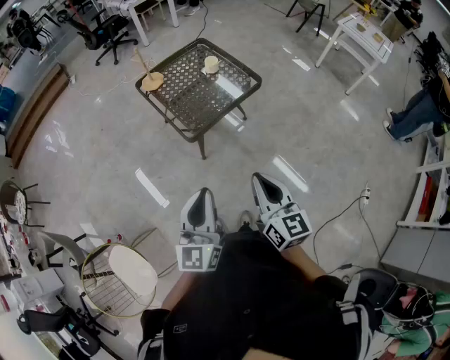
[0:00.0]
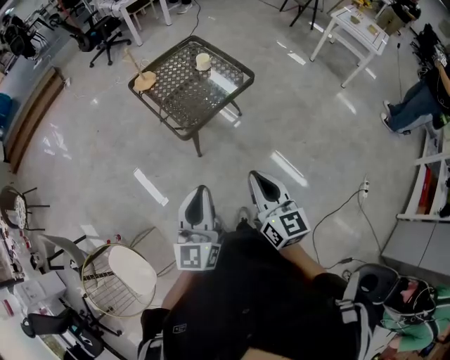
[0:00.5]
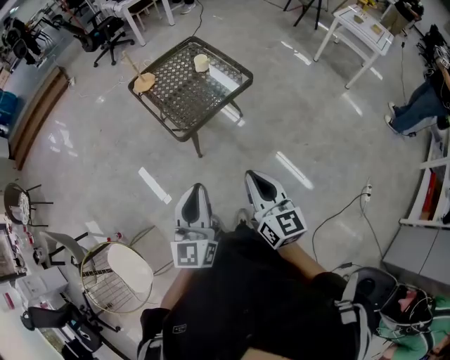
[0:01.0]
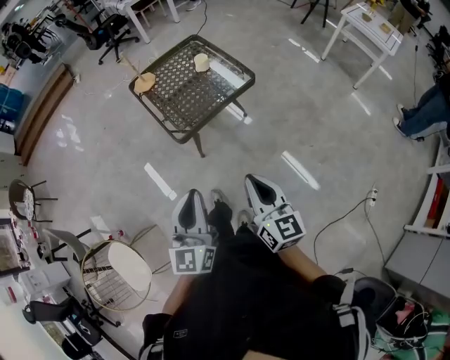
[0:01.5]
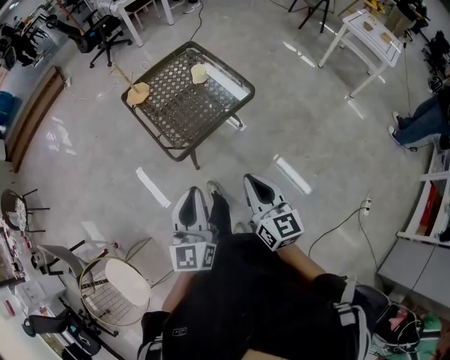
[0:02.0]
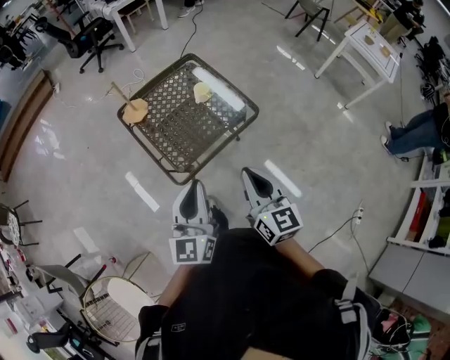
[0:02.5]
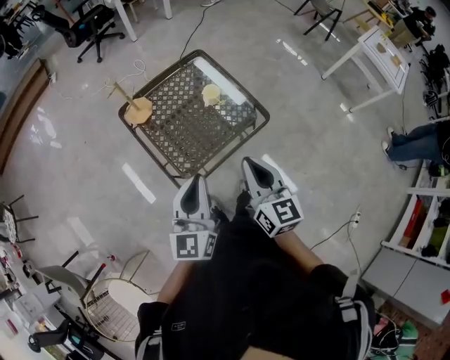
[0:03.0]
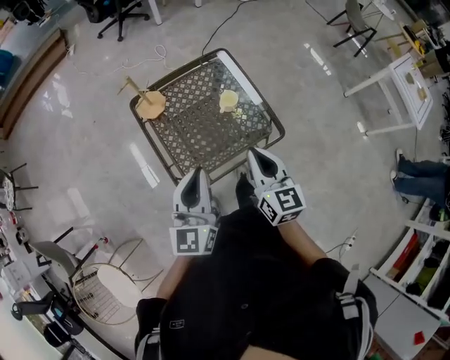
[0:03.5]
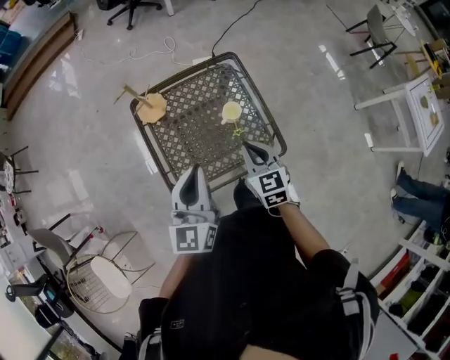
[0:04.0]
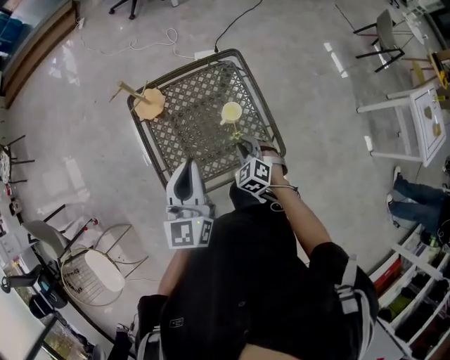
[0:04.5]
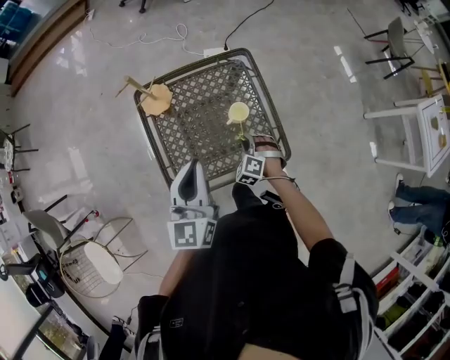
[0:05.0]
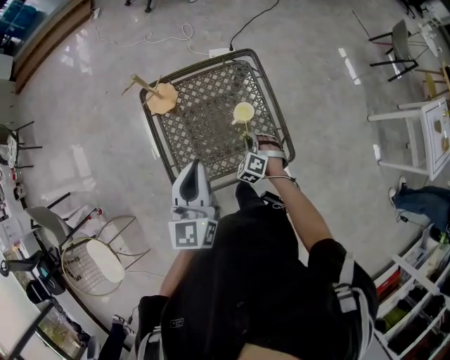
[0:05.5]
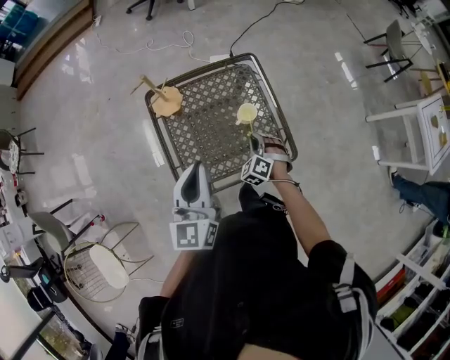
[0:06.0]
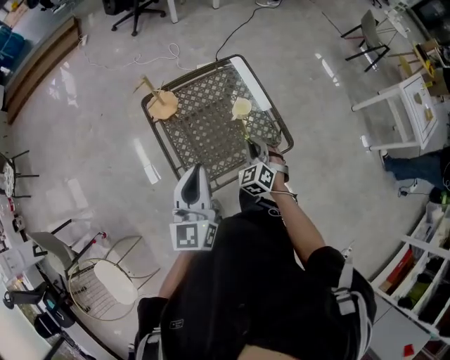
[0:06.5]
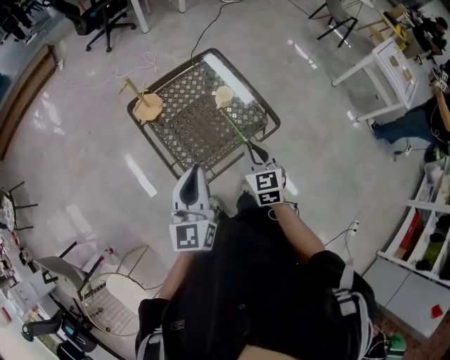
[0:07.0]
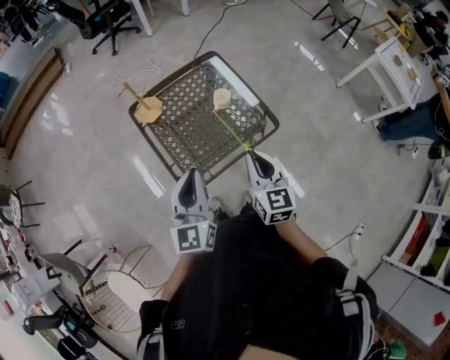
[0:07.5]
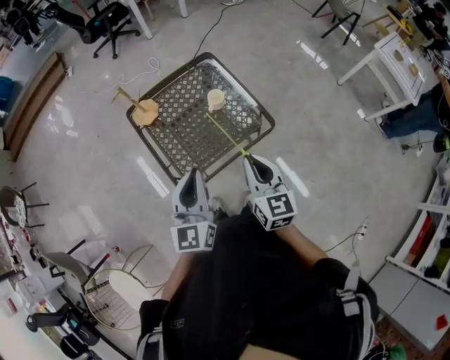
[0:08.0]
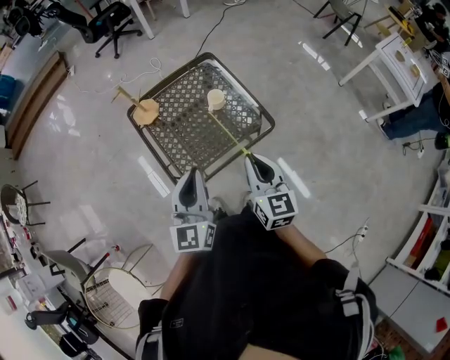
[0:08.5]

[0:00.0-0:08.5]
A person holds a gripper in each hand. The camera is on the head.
0:00.0 to 0:02.0: The grippers both shift forward and to the right by roughly 15 cm.
0:02.0 to 0:04.0: Both grippers are carried forward, roughly 50 cm. The right gripper swivels some 40 degrees.
0:04.0 to 0:06.5: The right gripper is displaced downward and to the left by about 10 cm, and swivels about 40 degrees. The left gripper goes approximately 10 cm to the left.
0:06.5 to 0:08.5: The left gripper goes some 10 cm to the right and backward; the right gripper goes roughly 25 cm upward, backward and to the right, and rolls clockwise, seen from behind, by approximately 50 degrees.

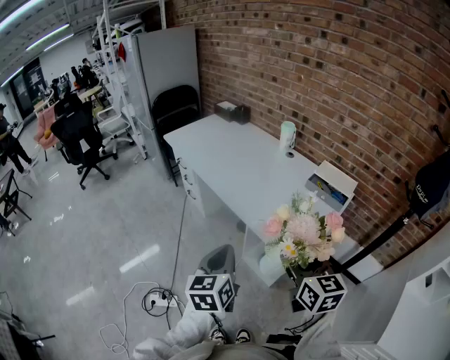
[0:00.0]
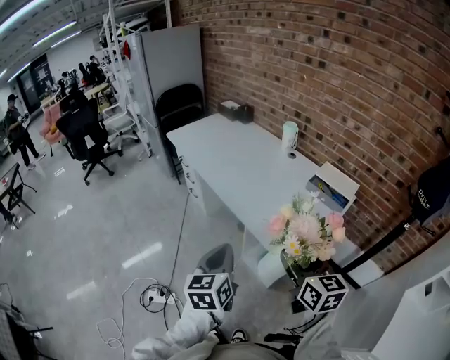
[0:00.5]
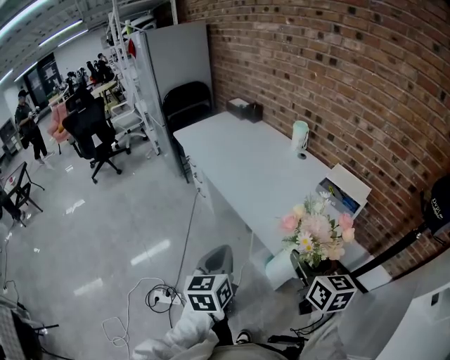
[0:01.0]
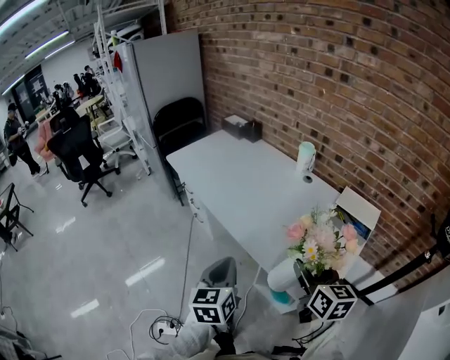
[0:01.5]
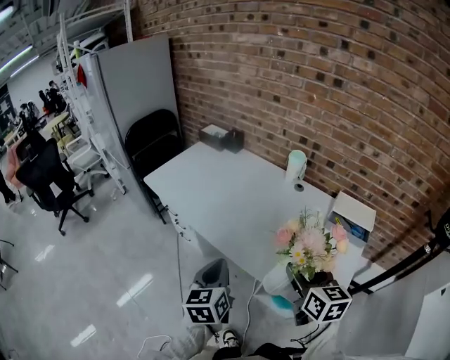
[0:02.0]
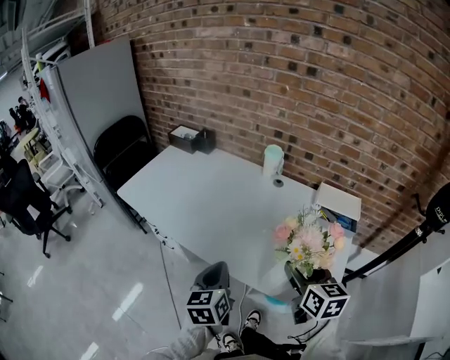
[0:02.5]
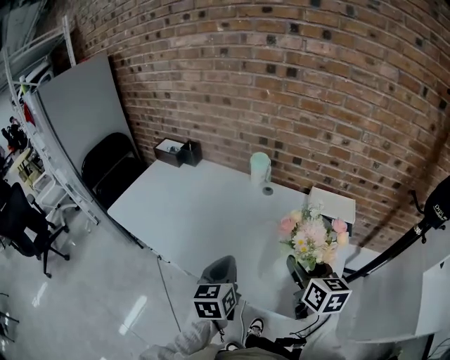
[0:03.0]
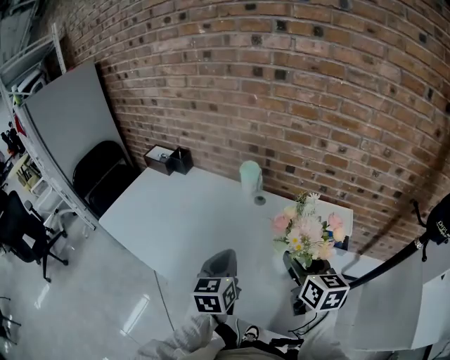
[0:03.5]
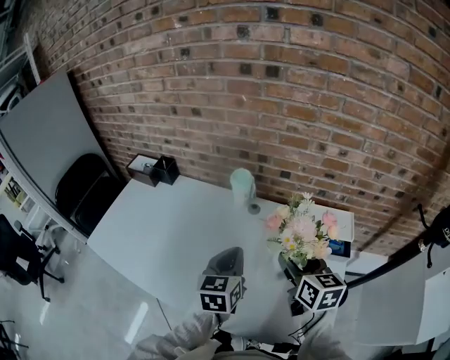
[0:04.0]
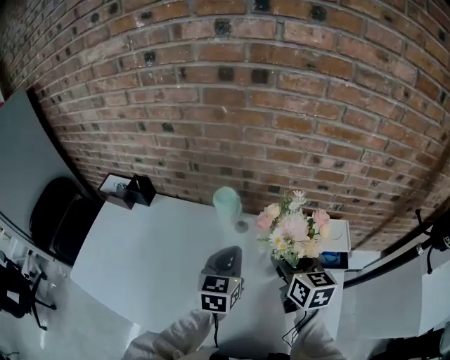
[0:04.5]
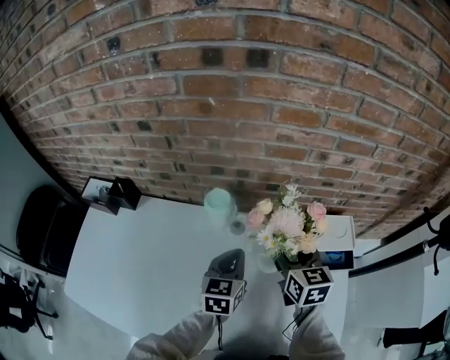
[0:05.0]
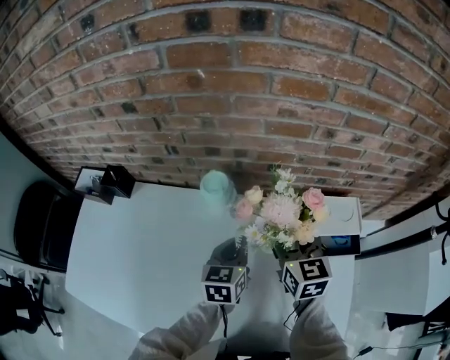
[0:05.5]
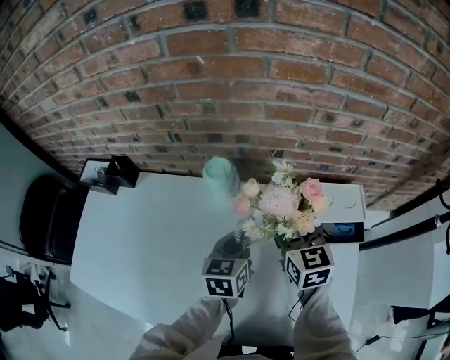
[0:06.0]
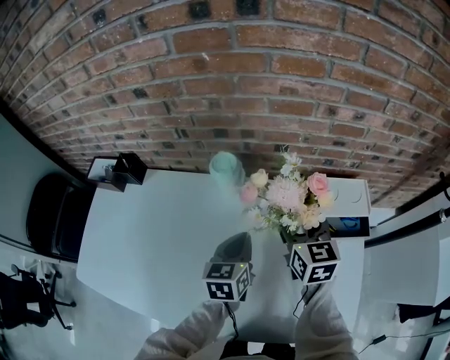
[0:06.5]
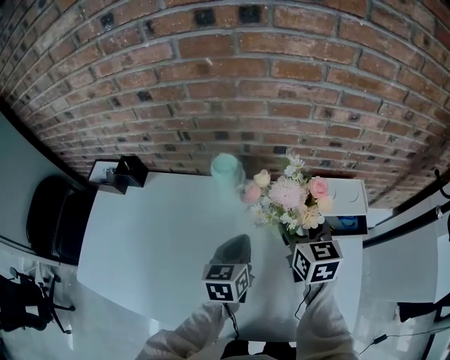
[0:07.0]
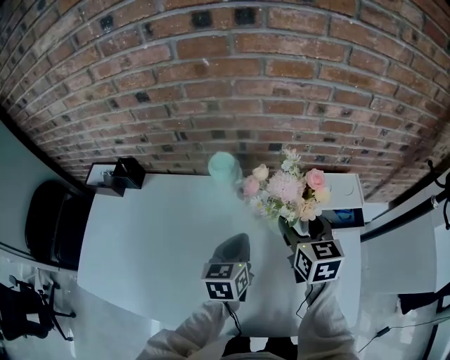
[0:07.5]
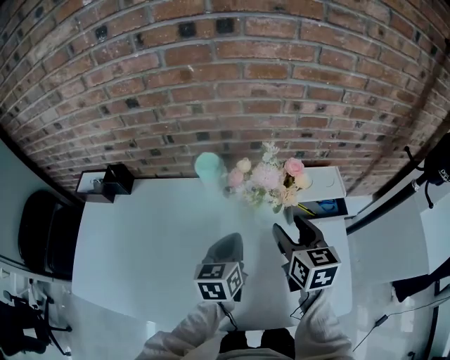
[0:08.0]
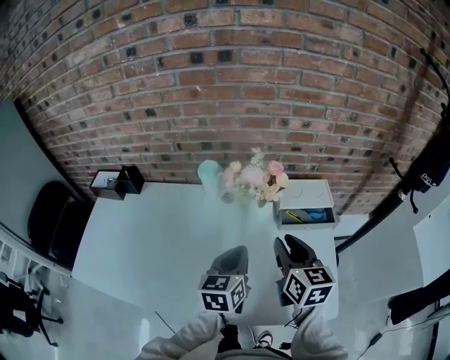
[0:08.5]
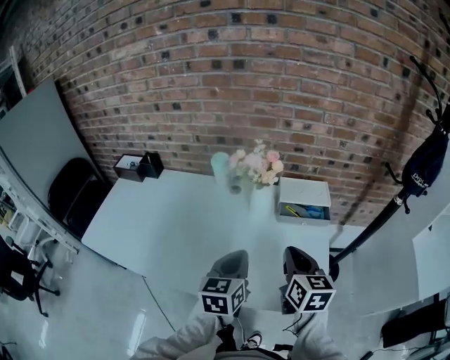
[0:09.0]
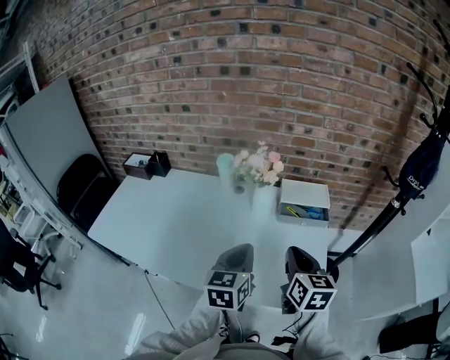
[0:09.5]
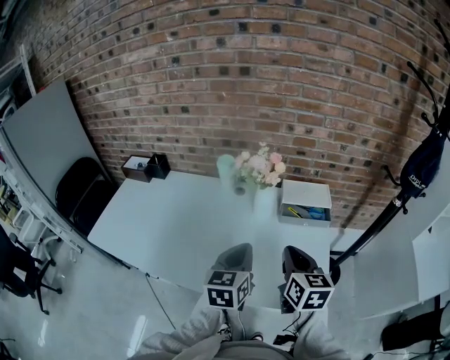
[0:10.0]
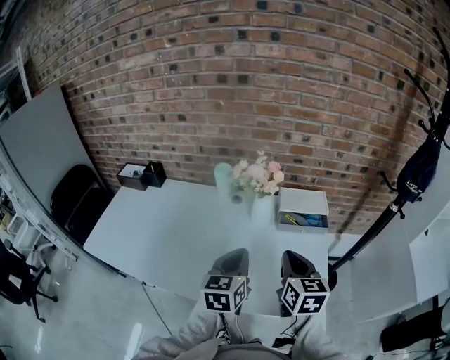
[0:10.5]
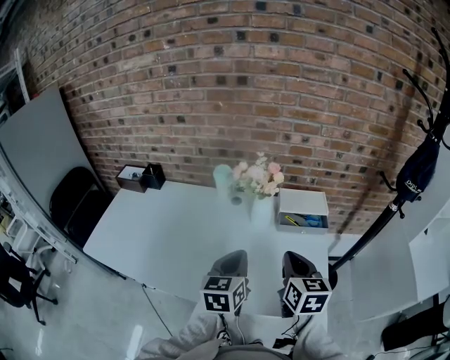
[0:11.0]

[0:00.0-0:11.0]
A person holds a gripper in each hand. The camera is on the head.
0:00.0 to 0:02.0: Both grippers move forward, some 25 cm.
0:02.0 to 0:03.5: The two grippers go roughly 20 cm forward and to the right.
0:03.5 to 0:05.5: The right gripper goes some 25 cm forward, while the left gripper moves forward and downward, some 25 cm, and rotates approximately 30 degrees.
0:05.5 to 0:07.5: Both grippers travel together backward, about 5 cm.
0:07.5 to 0:09.0: The left gripper goes approximately 25 cm backward, upward and to the right; the right gripper heads backward and to the right, covering roughly 25 cm, and closes up.
0:09.0 to 0:11.0: The grippers move only a little.

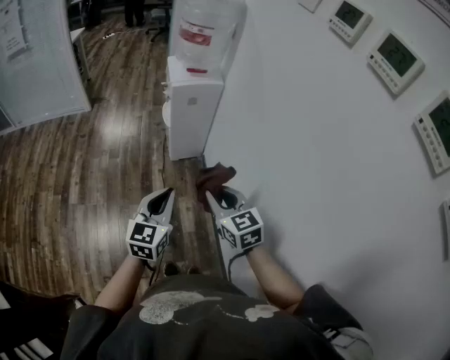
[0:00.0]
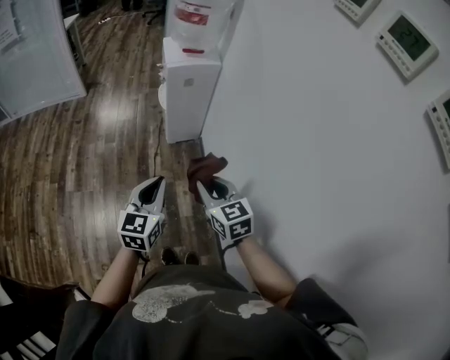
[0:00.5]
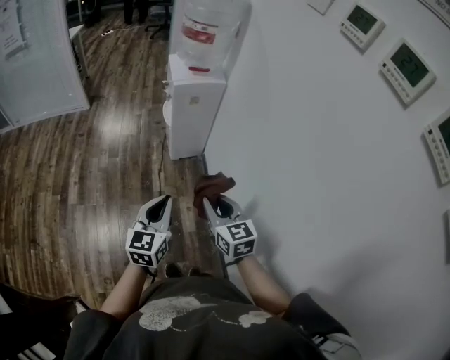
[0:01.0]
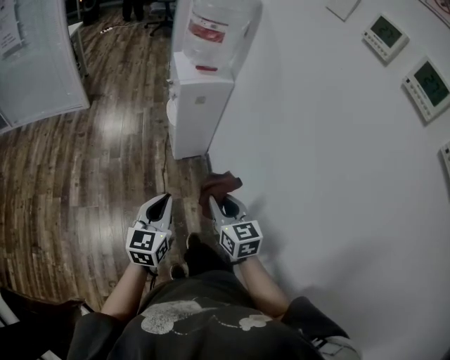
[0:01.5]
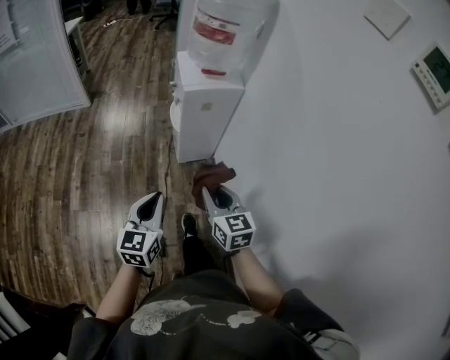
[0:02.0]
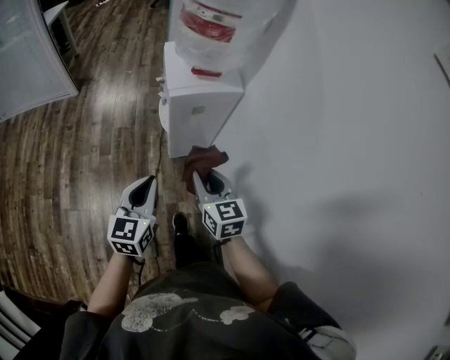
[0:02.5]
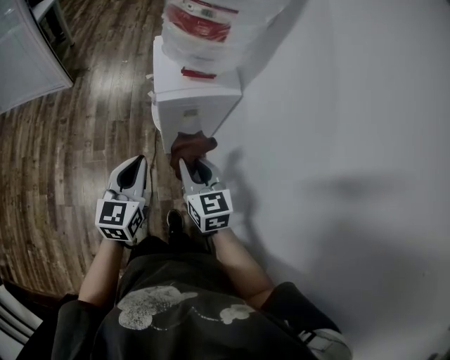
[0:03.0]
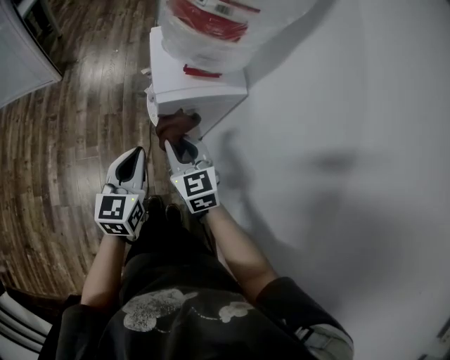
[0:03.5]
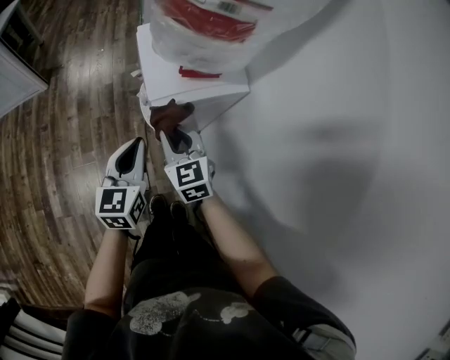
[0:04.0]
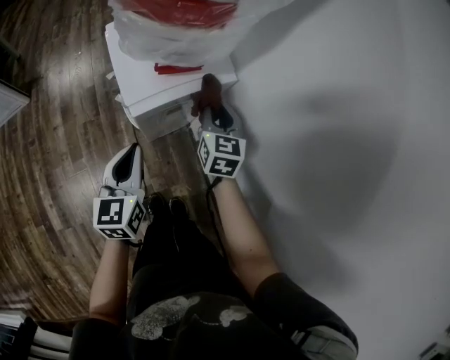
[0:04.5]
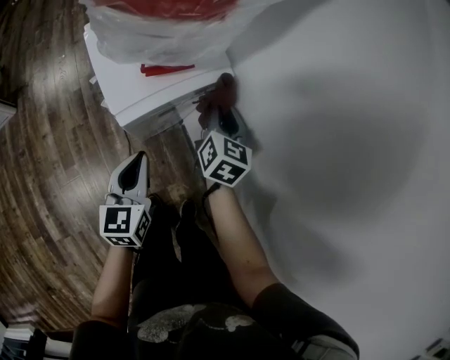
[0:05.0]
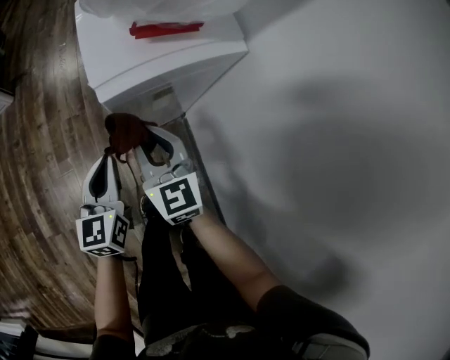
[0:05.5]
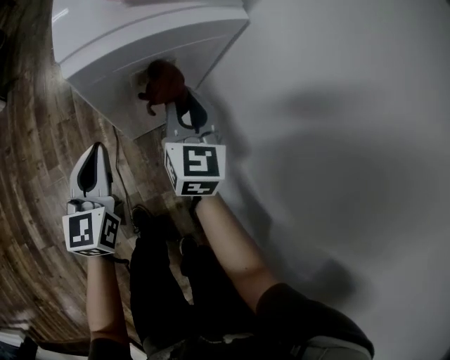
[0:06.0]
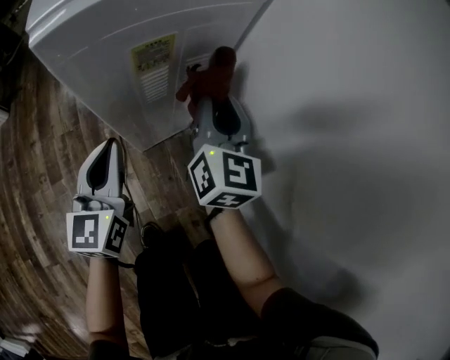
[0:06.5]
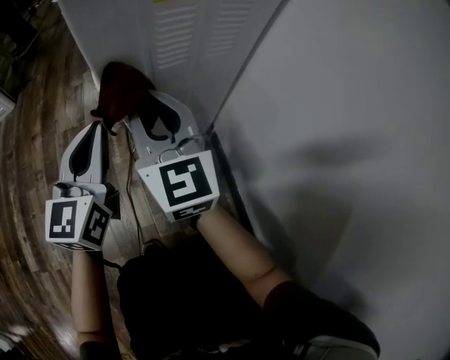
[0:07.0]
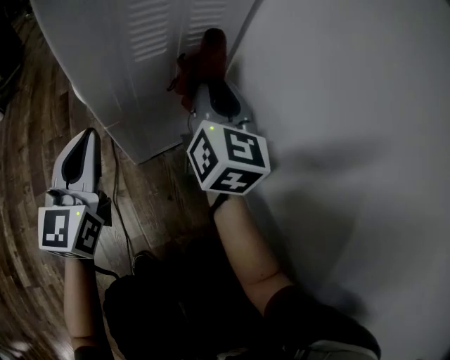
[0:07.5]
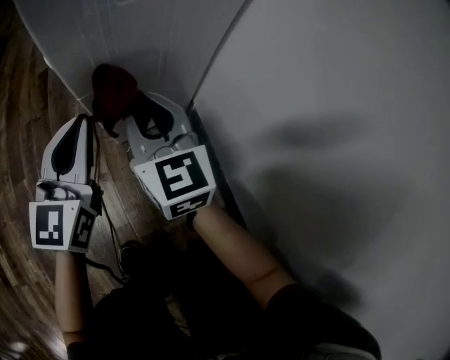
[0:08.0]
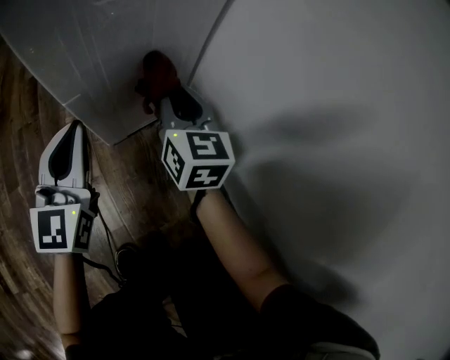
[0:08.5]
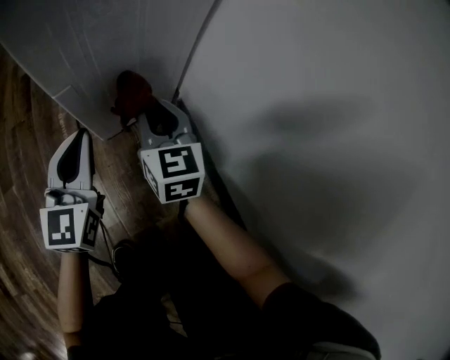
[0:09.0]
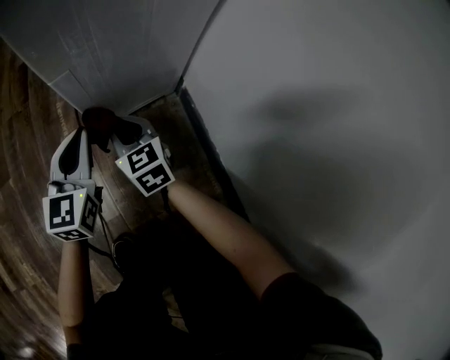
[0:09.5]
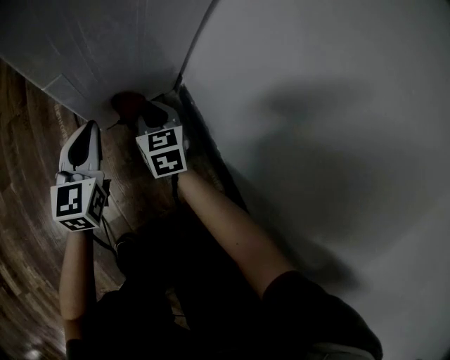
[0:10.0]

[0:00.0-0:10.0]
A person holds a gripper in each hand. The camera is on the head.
0:00.0 to 0:02.0: The left gripper moves forward and to the left, approximately 15 cm, while the right gripper travels forward by roughly 15 cm.
0:02.0 to 0:04.0: Both grippers travel together forward, about 35 cm.
0:04.0 to 0:06.0: The left gripper goes about 15 cm downward, while the right gripper moves roughly 20 cm, and rotates about 30 degrees.
0:06.0 to 0:08.0: Both grippers travel together downward, some 25 cm. The right gripper changes its angle by roughly 20 degrees.
0:08.0 to 0:10.0: Both grippers travel together downward, approximately 20 cm. The right gripper changes its angle by roughly 30 degrees.
